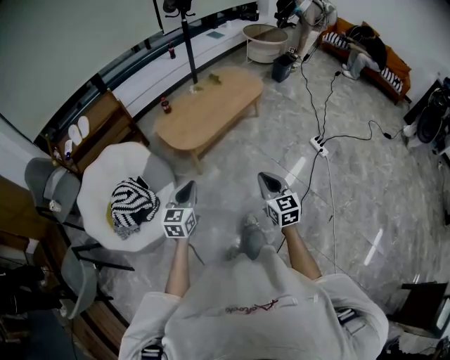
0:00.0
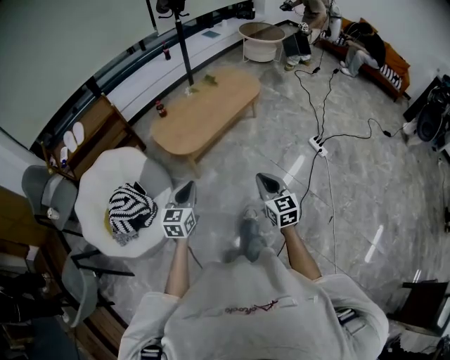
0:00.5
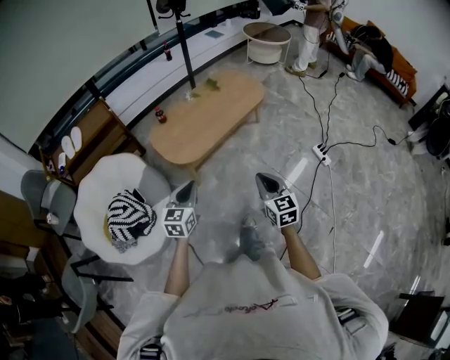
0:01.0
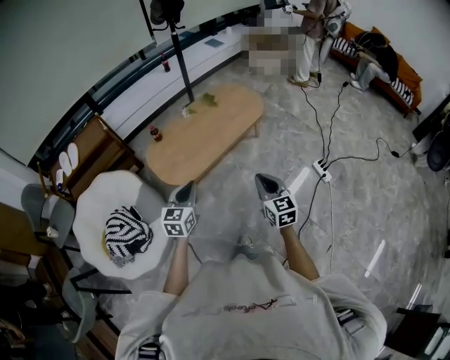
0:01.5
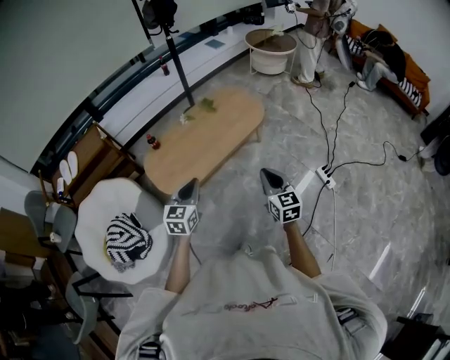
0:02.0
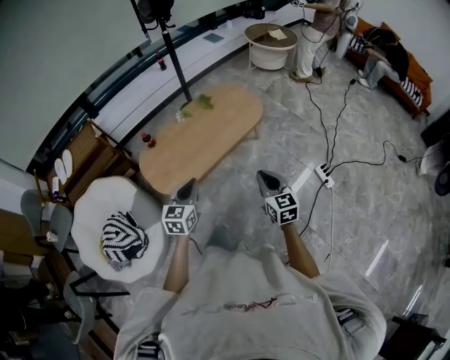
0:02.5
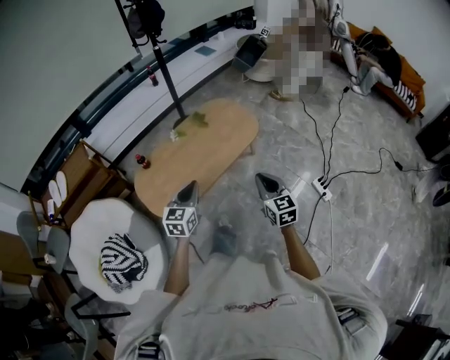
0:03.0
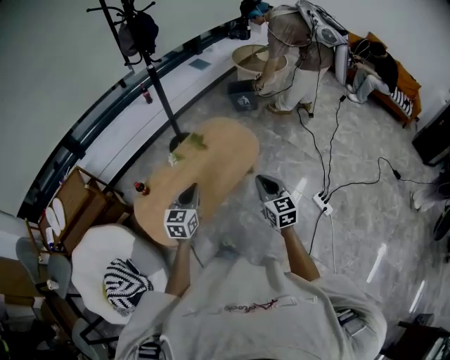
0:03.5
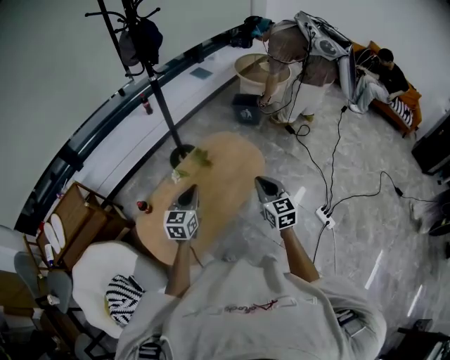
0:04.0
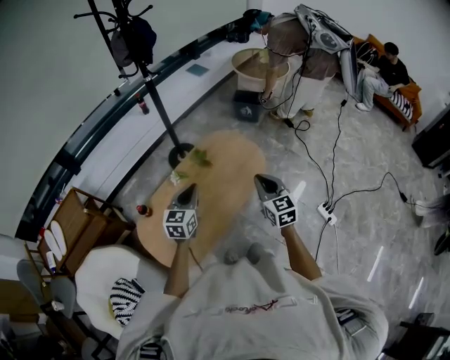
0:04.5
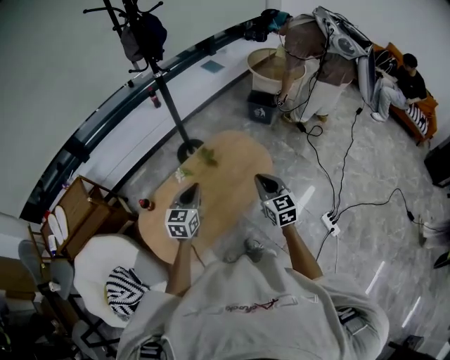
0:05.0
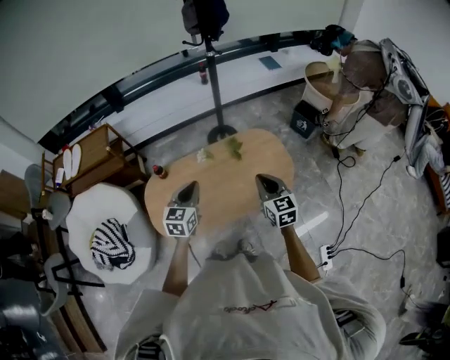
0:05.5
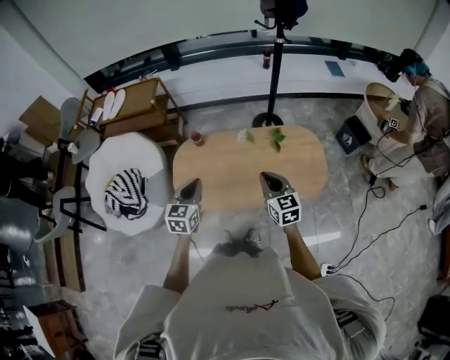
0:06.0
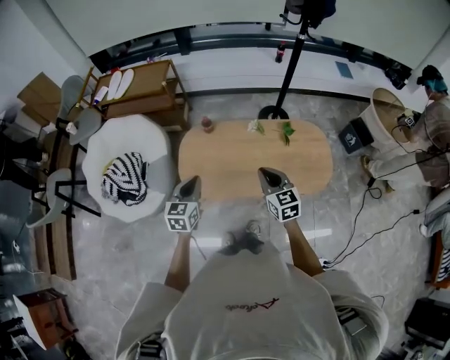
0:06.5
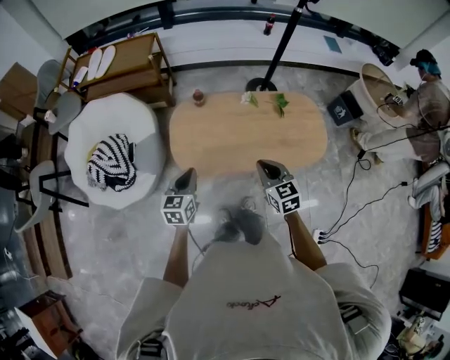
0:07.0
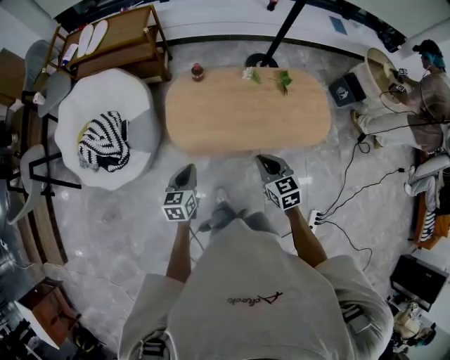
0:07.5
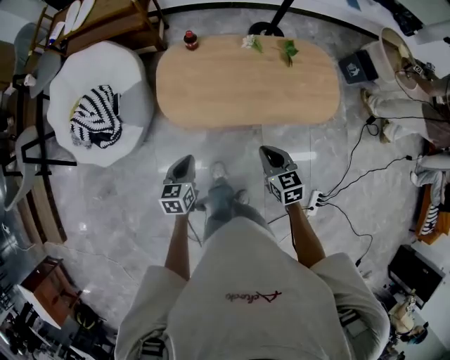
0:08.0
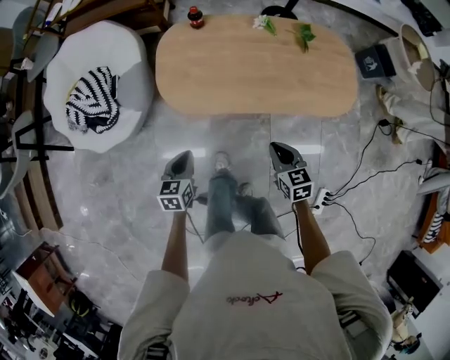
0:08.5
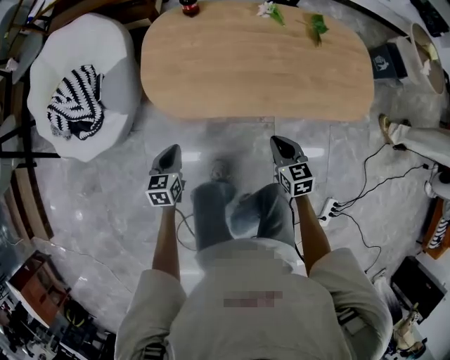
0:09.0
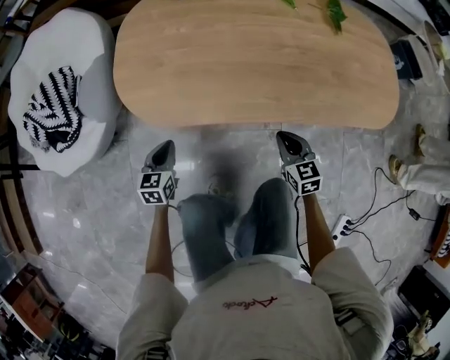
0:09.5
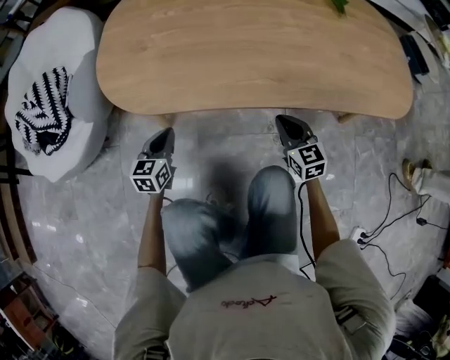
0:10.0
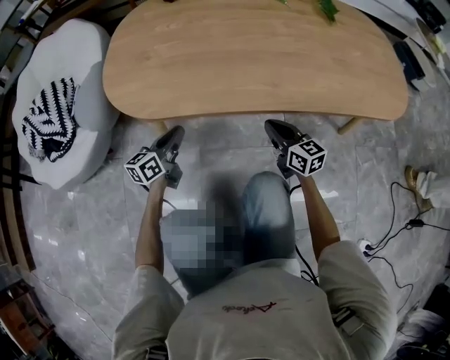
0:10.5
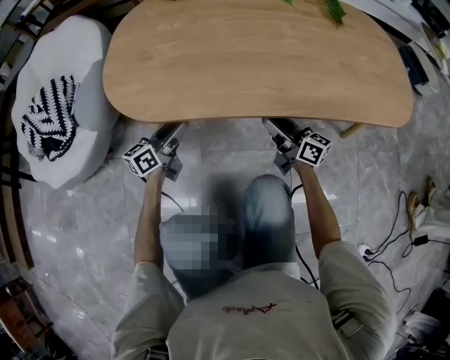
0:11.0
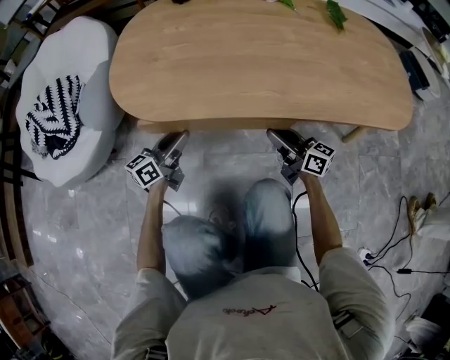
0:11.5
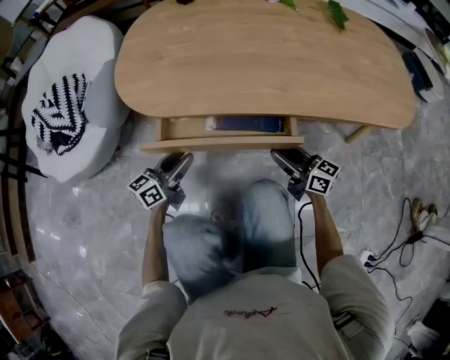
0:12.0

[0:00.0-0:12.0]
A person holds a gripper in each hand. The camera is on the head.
0:00.0 to 0:02.0: The two grippers travel together, forward and to the right, some 40 cm.
0:02.0 to 0:04.0: Both grippers are carried forward, some 40 cm.
0:04.0 to 0:06.0: The left gripper moves some 10 cm, and turns by some 40 degrees. Meanwhile the right gripper ends up roughly 15 cm from where it was, and swivels approximately 50 degrees.
0:06.0 to 0:08.0: Both grippers move downward, to the left and backward, about 30 cm. The right gripper turns by some 20 degrees. The left gripper changes its angle by about 20 degrees.
0:08.0 to 0:10.0: Both grippers move downward, about 60 cm.
0:10.0 to 0:12.0: Both grippers move backward, approximately 5 cm. The right gripper swivels approximately 40 degrees, and opens up. The left gripper changes its angle by approximately 40 degrees, and opens its fingers.

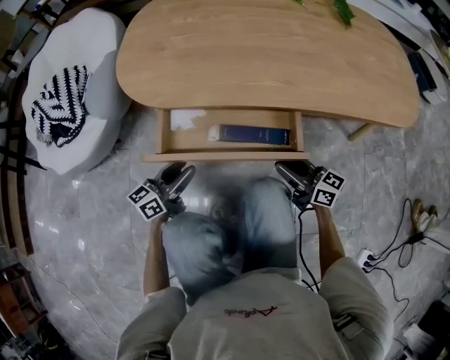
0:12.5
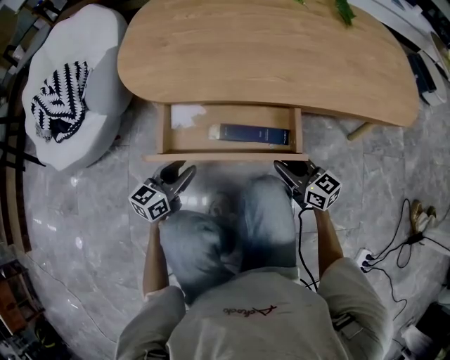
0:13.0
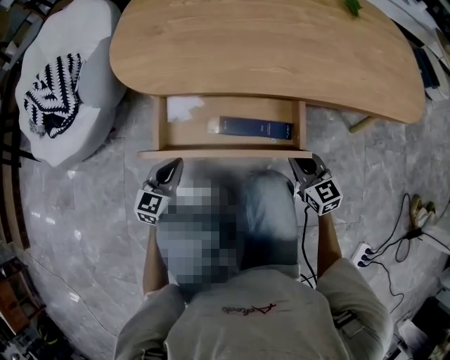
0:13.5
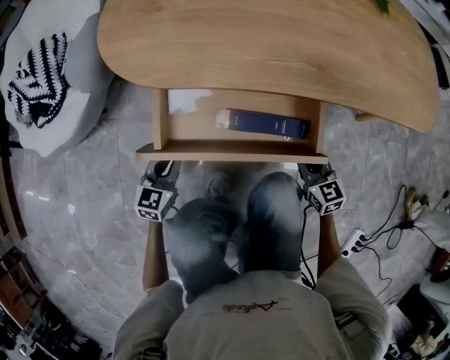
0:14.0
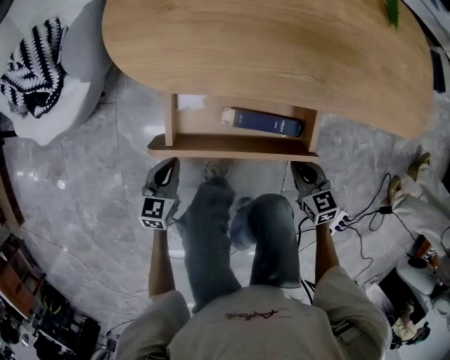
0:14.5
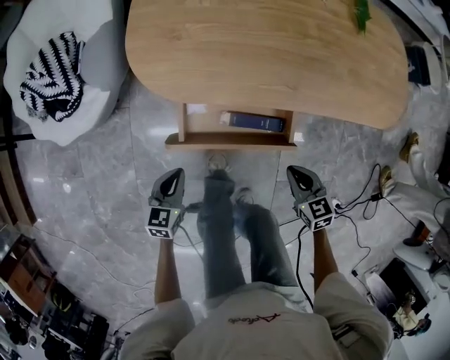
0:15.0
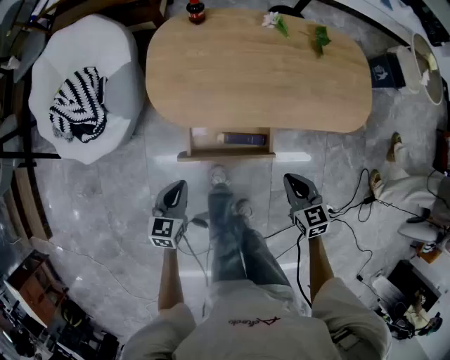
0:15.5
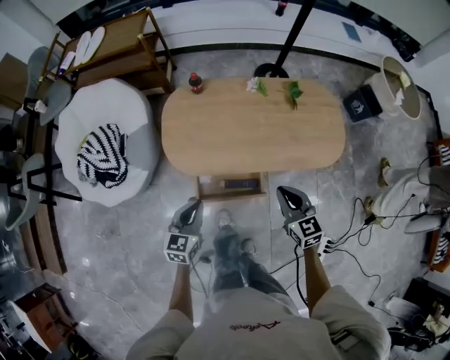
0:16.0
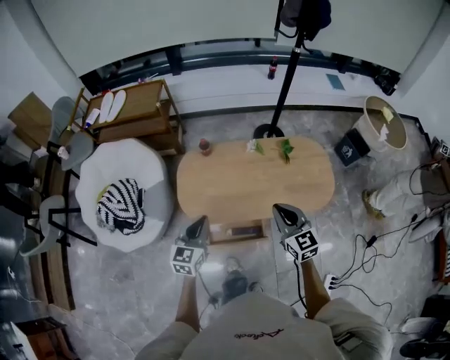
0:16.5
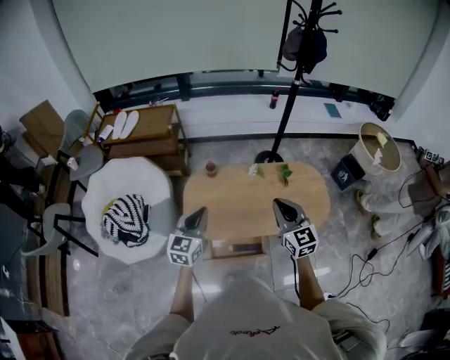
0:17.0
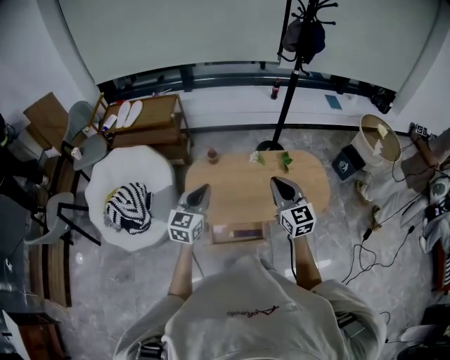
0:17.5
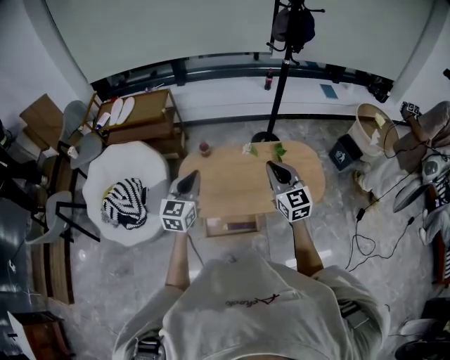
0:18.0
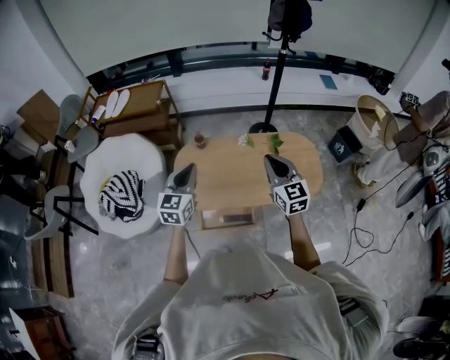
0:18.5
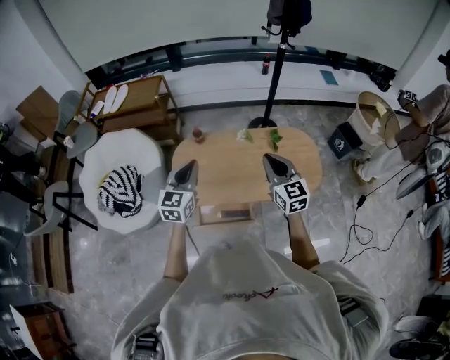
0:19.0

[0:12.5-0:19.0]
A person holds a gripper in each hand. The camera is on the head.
0:12.5 to 0:14.5: The left gripper shifts about 5 cm to the left, angles its fingers downward, by approximately 30 degrees, and closes. Meanwhile the right gripper points its fingers roughly 40 degrees further downward.
0:14.5 to 0:17.0: Both grippers travel together upward, about 80 cm. The left gripper rotates approximately 30 degrees. Meanwhile the right gripper tips its fingers upward by about 40 degrees.
0:17.0 to 0:19.0: Both grippers travel together to the right, approximately 5 cm.

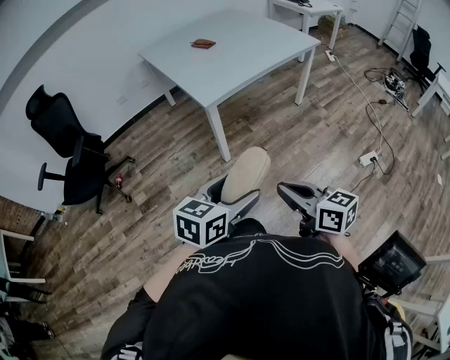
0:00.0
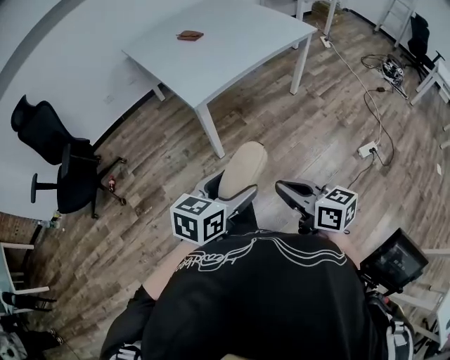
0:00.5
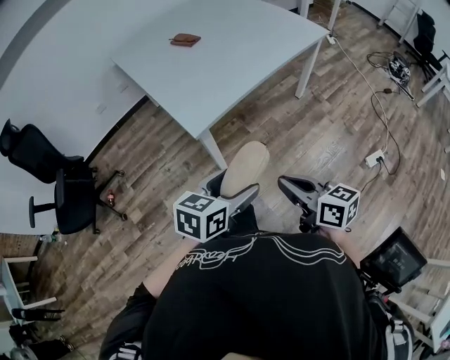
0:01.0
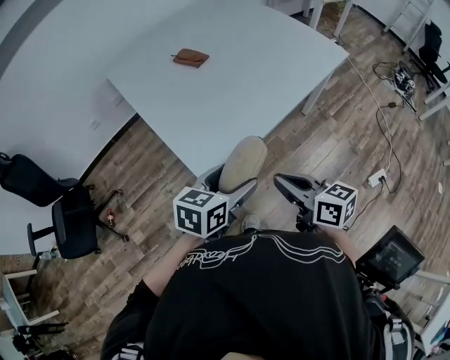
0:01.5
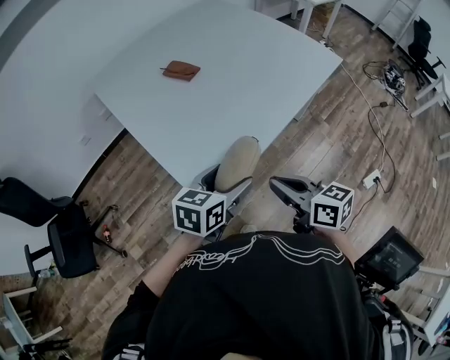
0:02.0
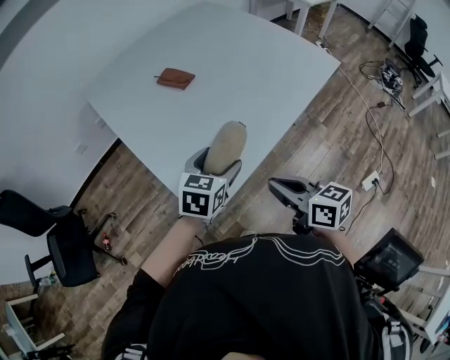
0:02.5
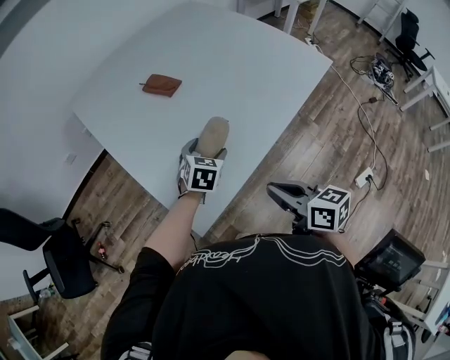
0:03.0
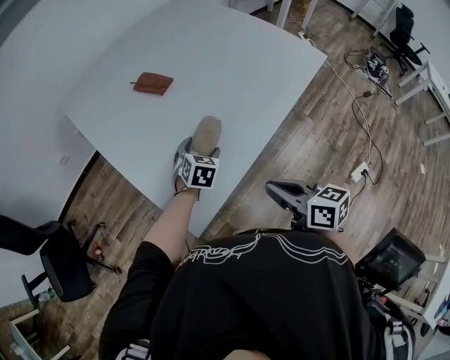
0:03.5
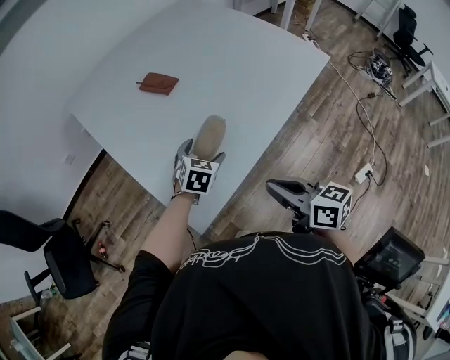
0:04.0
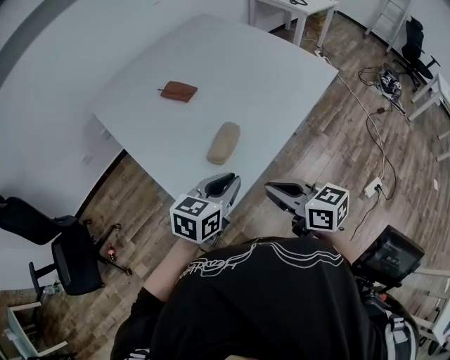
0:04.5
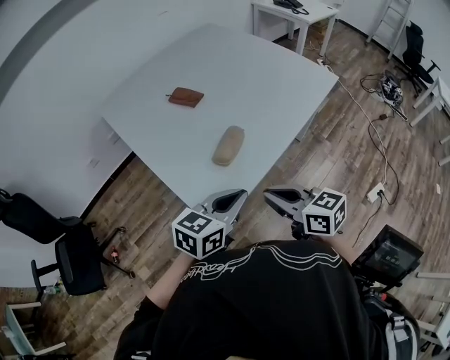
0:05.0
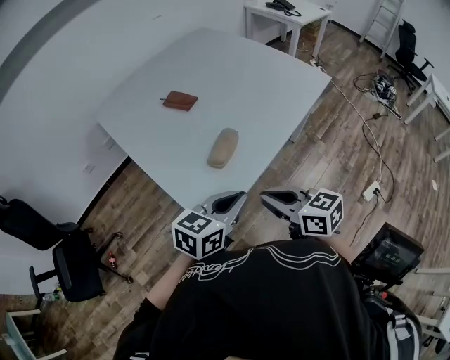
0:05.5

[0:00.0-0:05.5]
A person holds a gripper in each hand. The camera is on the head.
0:00.0 to 0:02.0: The pair of grippers is taken forward, approximately 50 cm.
0:02.0 to 0:03.5: The left gripper shifts about 25 cm forward and downward, and changes its angle by approximately 30 degrees; the right gripper changes place by some 5 cm.
0:03.5 to 0:05.5: The left gripper goes some 30 cm backward and upward, changes its angle by about 40 degrees, and closes. Meanwhile the right gripper shifts approximately 10 cm to the left and upward.

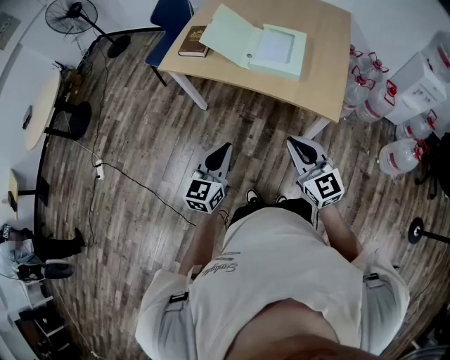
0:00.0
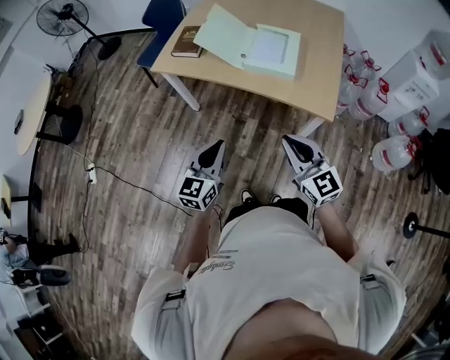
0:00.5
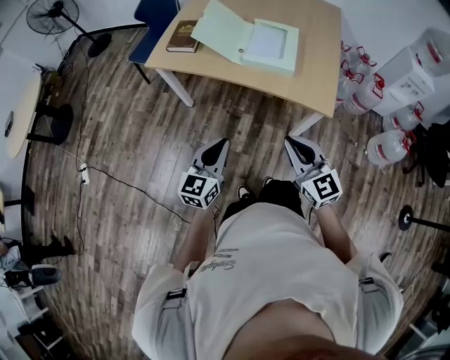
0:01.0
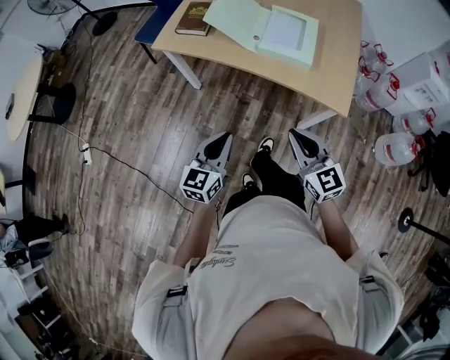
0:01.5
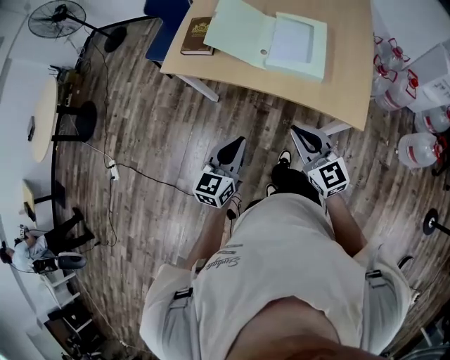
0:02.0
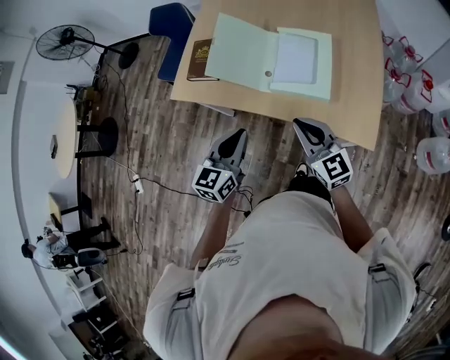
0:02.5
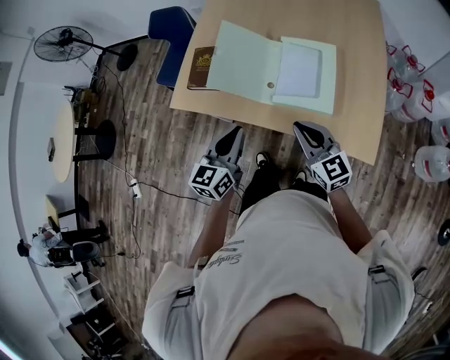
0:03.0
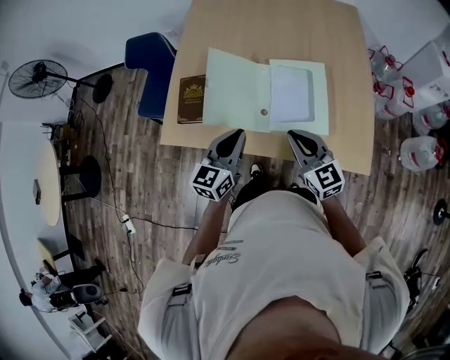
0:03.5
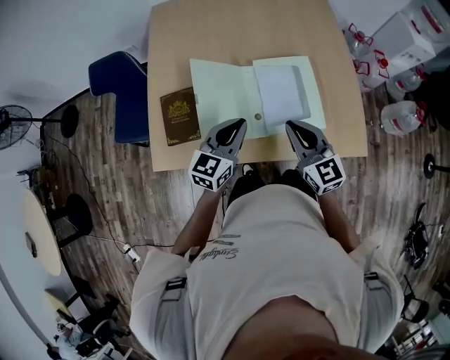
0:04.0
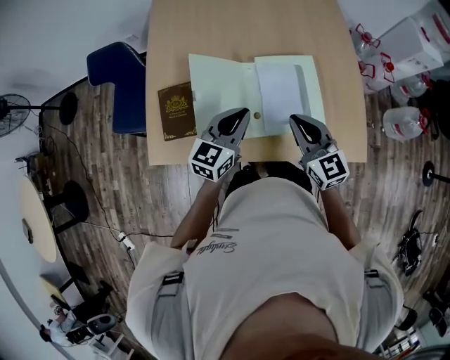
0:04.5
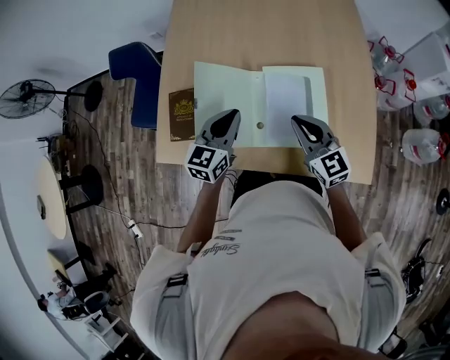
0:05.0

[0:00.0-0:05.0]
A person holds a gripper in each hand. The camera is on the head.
0:00.0 to 0:02.5: Both grippers travel together forward, some 25 cm.
0:02.5 to 0:05.0: The right gripper changes place by roughly 25 cm. The left gripper changes place by some 30 cm.
